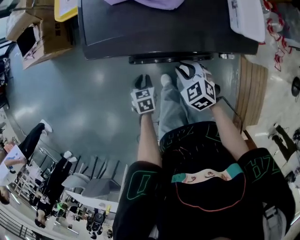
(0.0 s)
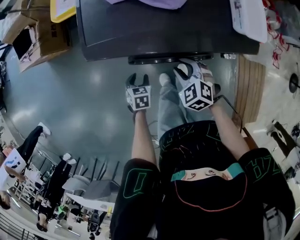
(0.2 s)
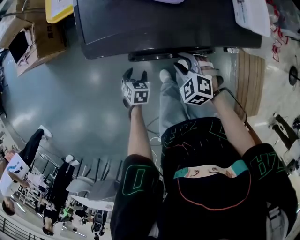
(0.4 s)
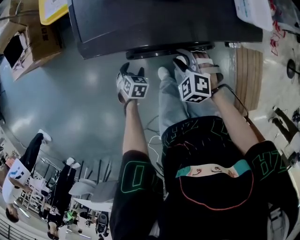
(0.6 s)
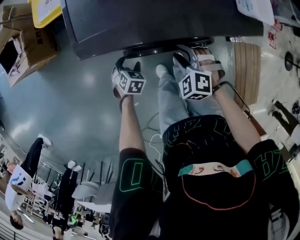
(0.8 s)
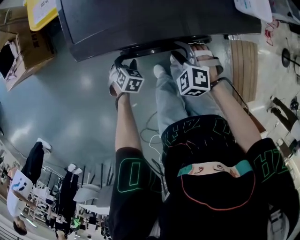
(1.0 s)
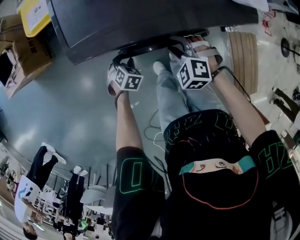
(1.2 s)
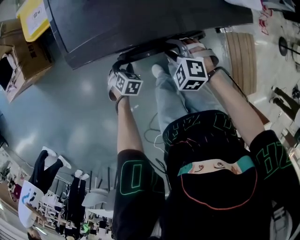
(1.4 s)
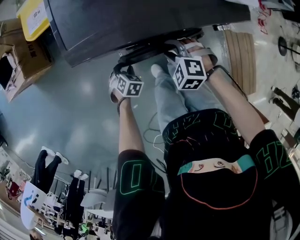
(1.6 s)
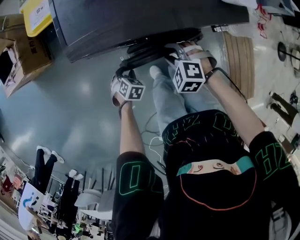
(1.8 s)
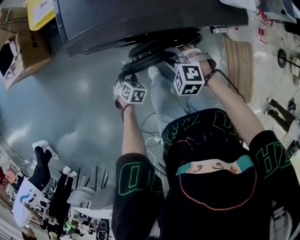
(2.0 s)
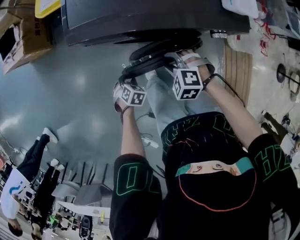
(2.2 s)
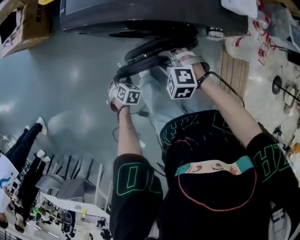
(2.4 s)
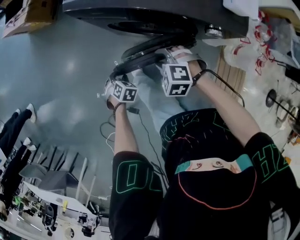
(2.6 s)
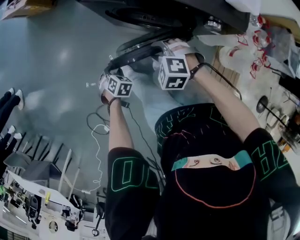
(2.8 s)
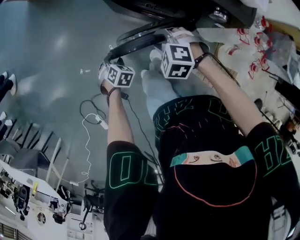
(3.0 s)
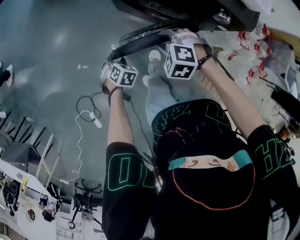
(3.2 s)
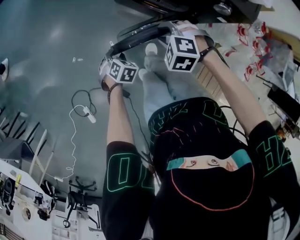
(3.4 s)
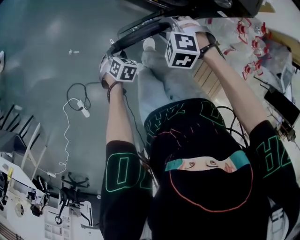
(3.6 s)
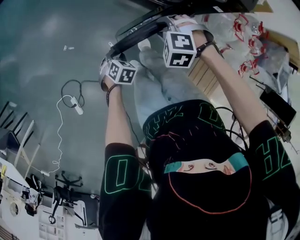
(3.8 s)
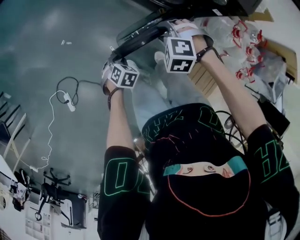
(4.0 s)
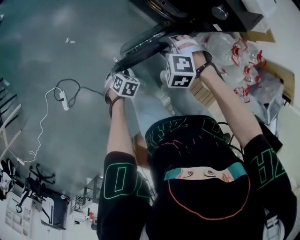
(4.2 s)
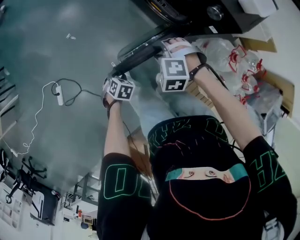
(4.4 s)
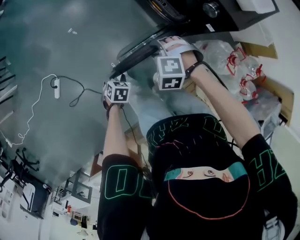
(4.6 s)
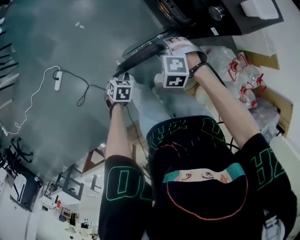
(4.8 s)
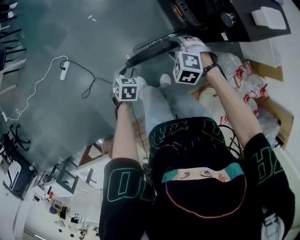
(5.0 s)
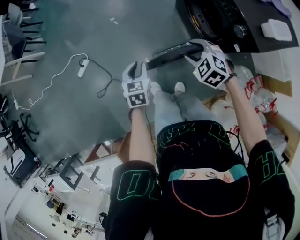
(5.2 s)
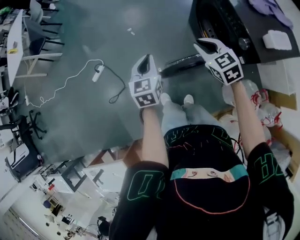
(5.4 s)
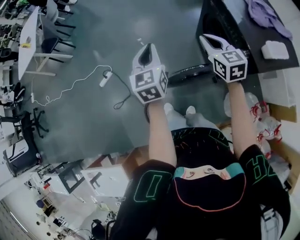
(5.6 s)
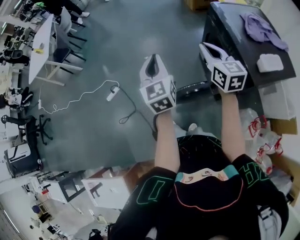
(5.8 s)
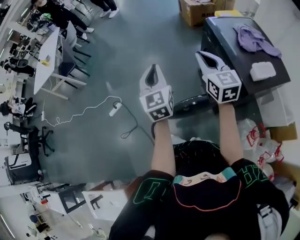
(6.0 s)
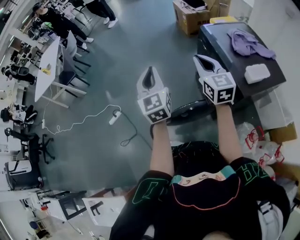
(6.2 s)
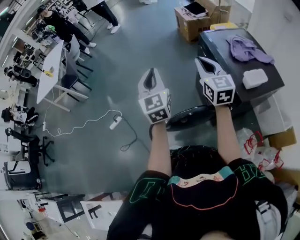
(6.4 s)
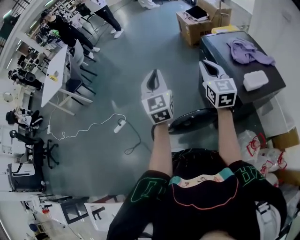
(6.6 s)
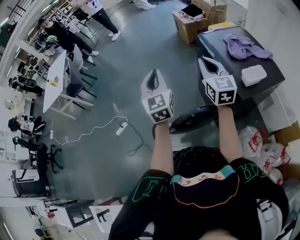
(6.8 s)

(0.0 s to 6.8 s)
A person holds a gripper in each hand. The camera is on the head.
0.0 s - 1.4 s: The right gripper ends up roughly 5 cm from where it was, and changes its angle by roughly 20 degrees; the left gripper moves downward, roughly 5 cm, rotates around the line of its fingers by approximately 40 degrees, clockwise from behind, and opens and closes again.
1.4 s - 2.8 s: The left gripper changes place by some 25 cm, and rotates about 30 degrees. Meanwhile the right gripper ends up about 15 cm from where it was, and rotates about 40 degrees.
2.8 s - 4.0 s: The left gripper changes place by roughly 25 cm, and swivels some 20 degrees; the right gripper shifts by approximately 15 cm, and turns by about 30 degrees.
4.0 s - 5.4 s: The left gripper heads upward, covering about 30 cm, points its fingers about 40 degrees further upward, and closes up; the right gripper moves upward, some 15 cm, tilts its fingers approximately 40 degrees upward, and closes its fingers.
5.4 s - 6.8 s: The two grippers go some 25 cm upward. The left gripper swivels some 30 degrees. Meanwhile the right gripper tilts its fingers approximately 30 degrees upward.

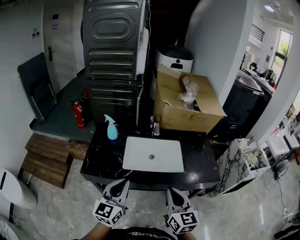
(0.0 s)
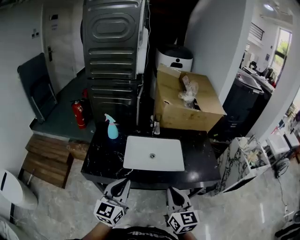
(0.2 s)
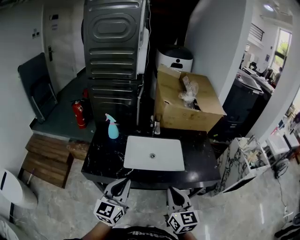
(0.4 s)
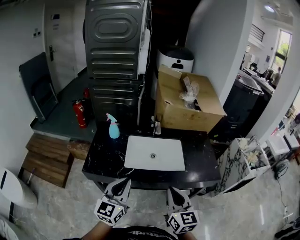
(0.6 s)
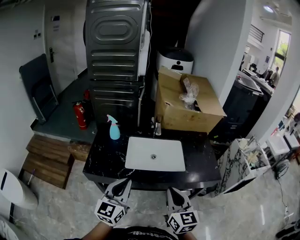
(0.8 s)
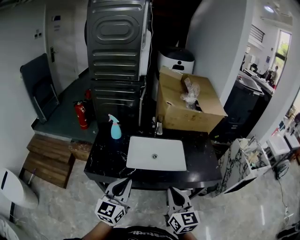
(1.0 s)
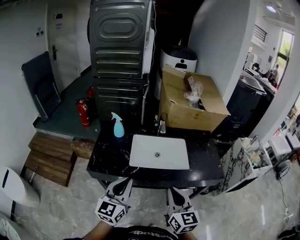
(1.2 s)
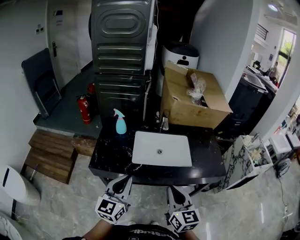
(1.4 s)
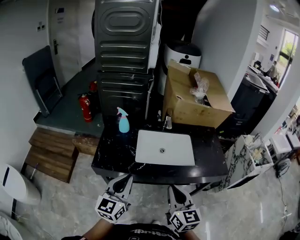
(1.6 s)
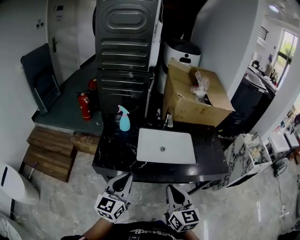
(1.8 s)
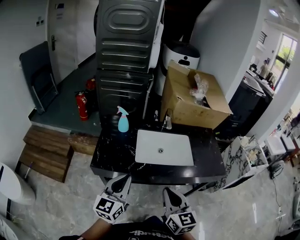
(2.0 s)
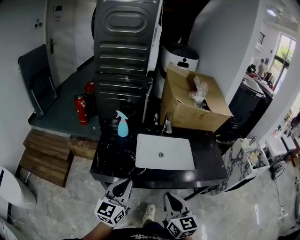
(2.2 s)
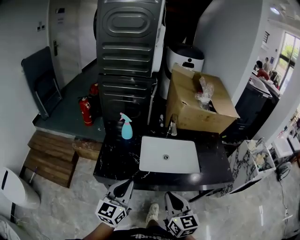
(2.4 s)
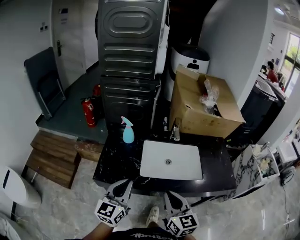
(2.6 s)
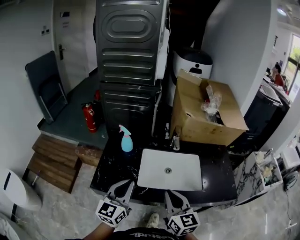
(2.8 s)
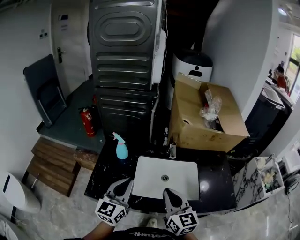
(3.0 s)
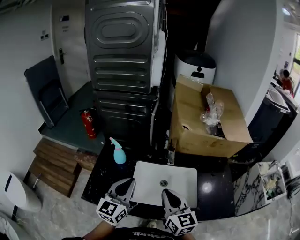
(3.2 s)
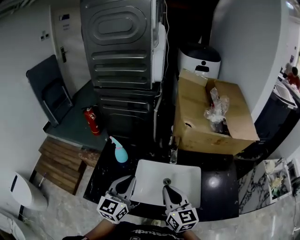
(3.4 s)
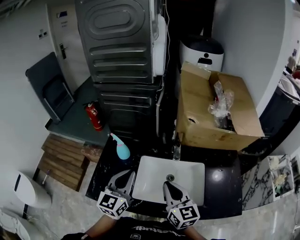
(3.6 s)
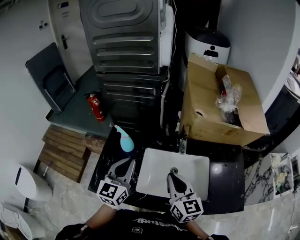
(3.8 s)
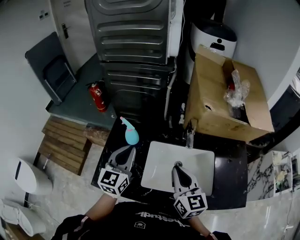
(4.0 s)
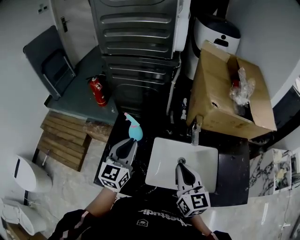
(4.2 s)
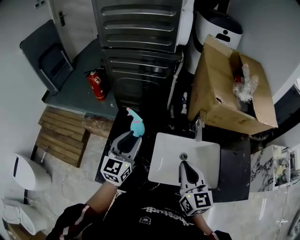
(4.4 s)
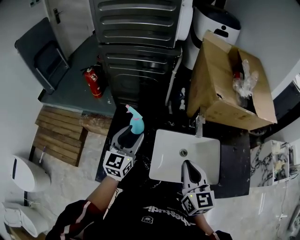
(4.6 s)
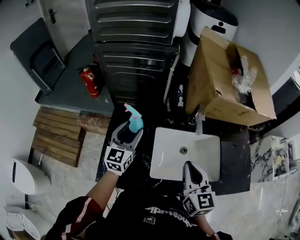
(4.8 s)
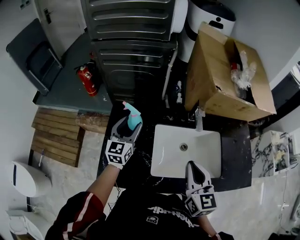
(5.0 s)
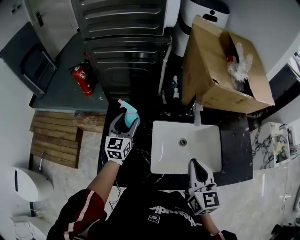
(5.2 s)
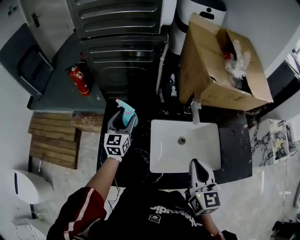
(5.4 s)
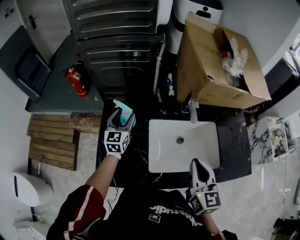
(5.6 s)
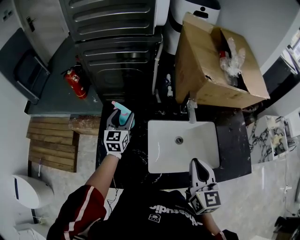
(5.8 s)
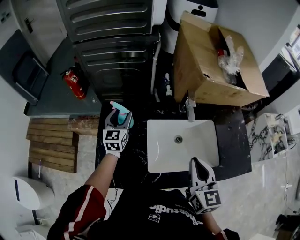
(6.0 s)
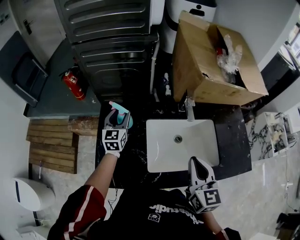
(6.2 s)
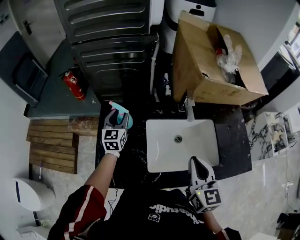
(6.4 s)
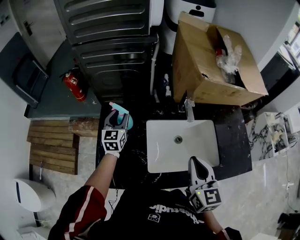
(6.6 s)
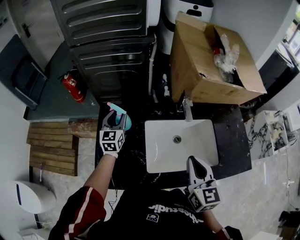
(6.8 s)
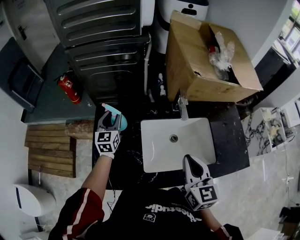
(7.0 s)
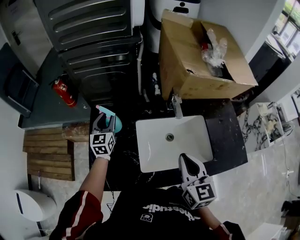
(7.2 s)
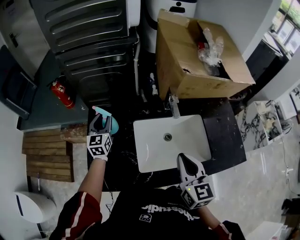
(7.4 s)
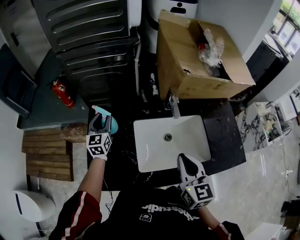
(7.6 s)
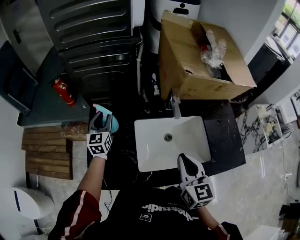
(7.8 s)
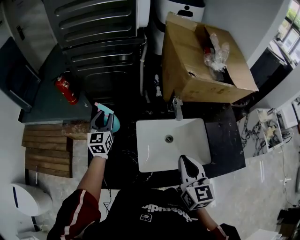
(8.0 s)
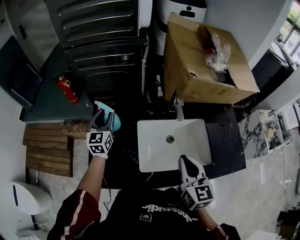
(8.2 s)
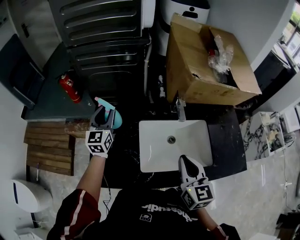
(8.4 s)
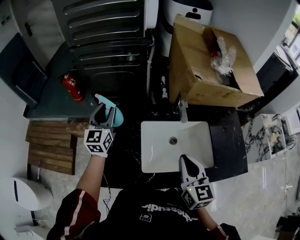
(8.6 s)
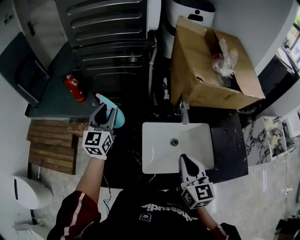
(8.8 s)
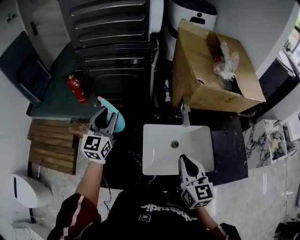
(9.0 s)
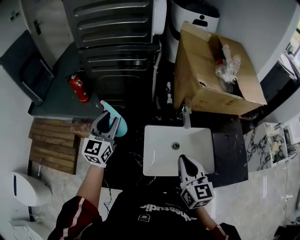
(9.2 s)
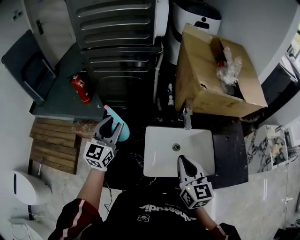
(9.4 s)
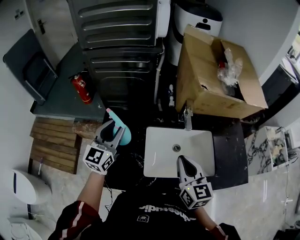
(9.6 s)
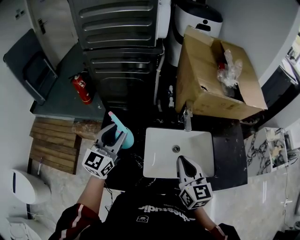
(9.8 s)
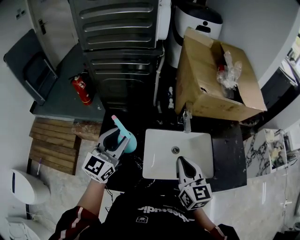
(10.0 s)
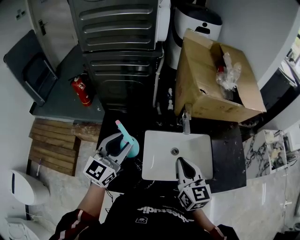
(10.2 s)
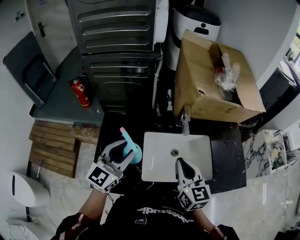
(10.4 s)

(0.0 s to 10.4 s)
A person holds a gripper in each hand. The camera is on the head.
0.0 s - 1.4 s: The right gripper heads to the left, covering about 5 cm. Meanwhile the left gripper changes place by roughly 5 cm.
1.4 s - 3.0 s: The grippers both shift forward by about 20 cm.
3.0 s - 4.4 s: The left gripper heads forward and to the left, covering some 20 cm, and opens. The right gripper moves forward, some 10 cm.
4.4 s - 6.0 s: The right gripper moves roughly 5 cm. Meanwhile the left gripper travels forward and downward by some 15 cm, and opens up.
6.0 s - 7.4 s: The left gripper closes up.
7.4 s - 9.0 s: The left gripper heads upward, covering some 10 cm.
9.0 s - 10.4 s: The left gripper moves backward and to the right, about 15 cm.

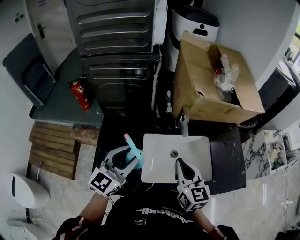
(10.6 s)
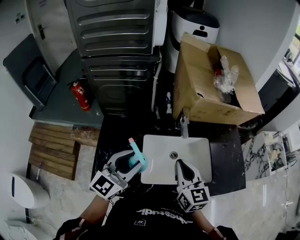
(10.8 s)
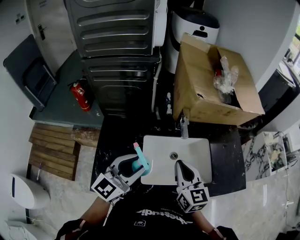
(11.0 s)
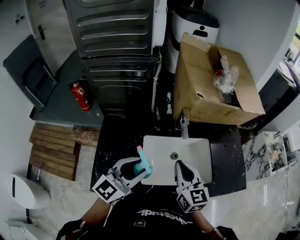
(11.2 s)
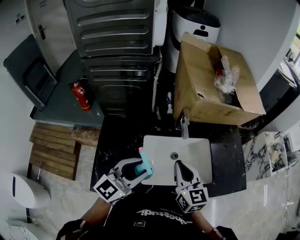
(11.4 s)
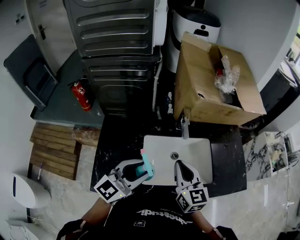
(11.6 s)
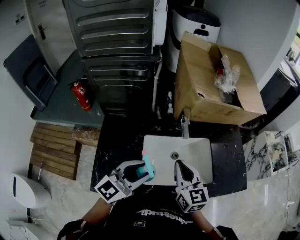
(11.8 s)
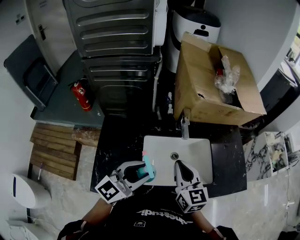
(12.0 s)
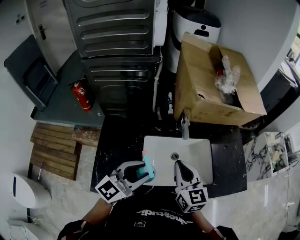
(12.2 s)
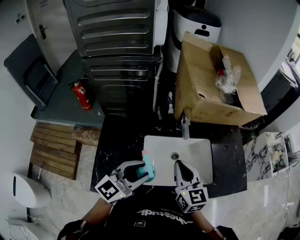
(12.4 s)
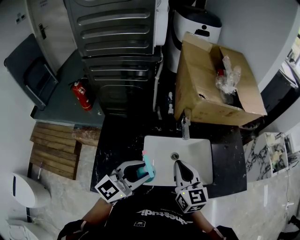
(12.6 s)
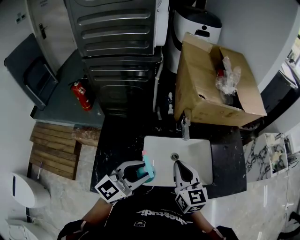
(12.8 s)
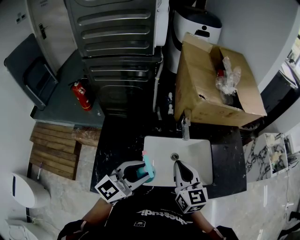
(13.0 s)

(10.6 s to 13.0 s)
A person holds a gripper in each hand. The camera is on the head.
10.6 s - 11.8 s: The left gripper moves to the right, approximately 5 cm.
11.8 s - 13.0 s: Both grippers stay put.

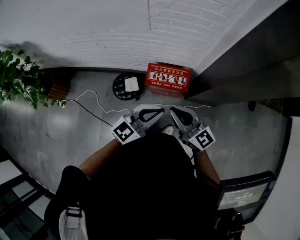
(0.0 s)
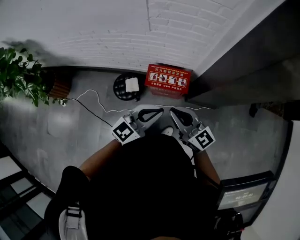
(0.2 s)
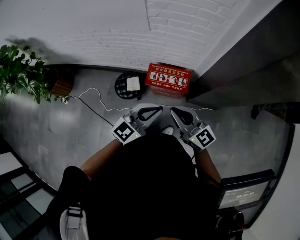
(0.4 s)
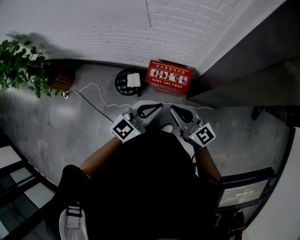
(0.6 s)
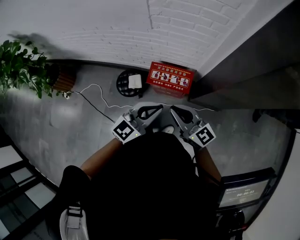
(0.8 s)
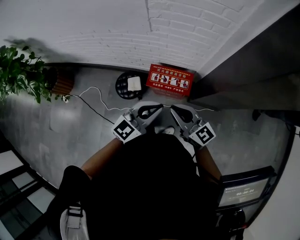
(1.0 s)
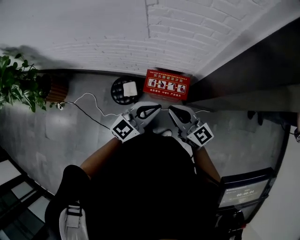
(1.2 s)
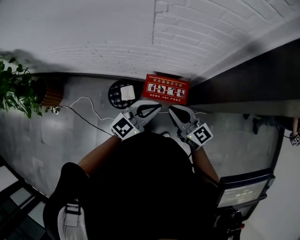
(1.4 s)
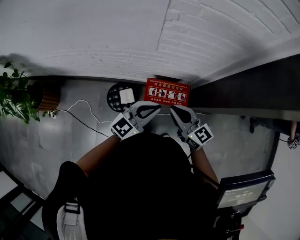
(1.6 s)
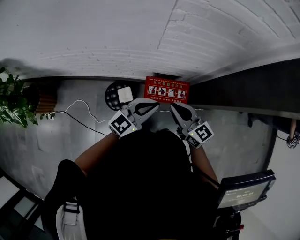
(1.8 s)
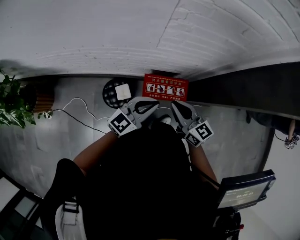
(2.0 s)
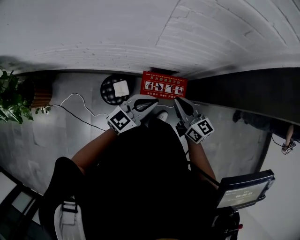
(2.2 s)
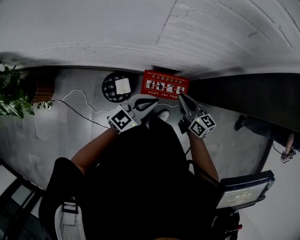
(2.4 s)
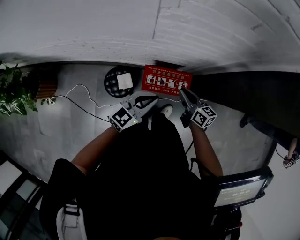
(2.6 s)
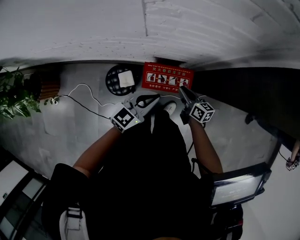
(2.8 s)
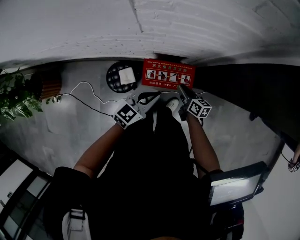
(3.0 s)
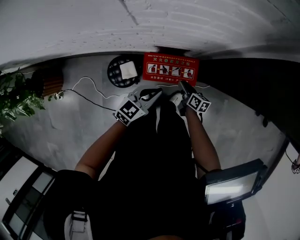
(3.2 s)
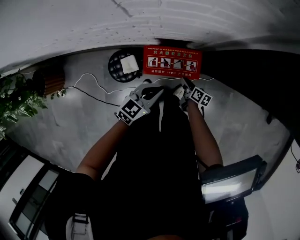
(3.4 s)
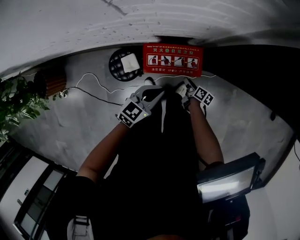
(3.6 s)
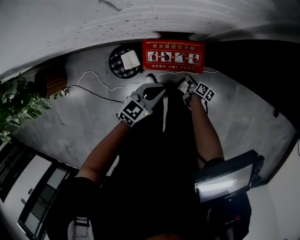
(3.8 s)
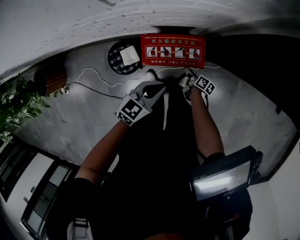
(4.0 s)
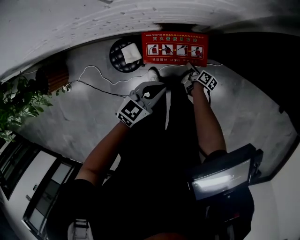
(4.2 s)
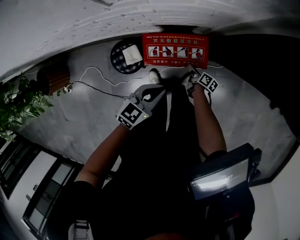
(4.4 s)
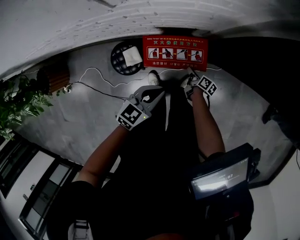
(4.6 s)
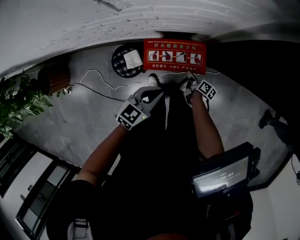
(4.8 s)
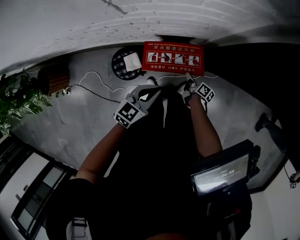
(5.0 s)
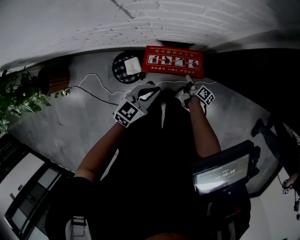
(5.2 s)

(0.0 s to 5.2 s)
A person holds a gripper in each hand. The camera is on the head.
0.0 s - 1.8 s: Both grippers move forward and to the left, about 20 cm.
1.8 s - 3.4 s: The left gripper goes approximately 25 cm downward and to the right, and rotates roughly 30 degrees; the right gripper heads downward, covering about 40 cm, rolls clockwise, seen from behind, by some 50 degrees, and opens.
3.4 s - 5.2 s: The right gripper reaches approximately 10 cm downward, then returns.
